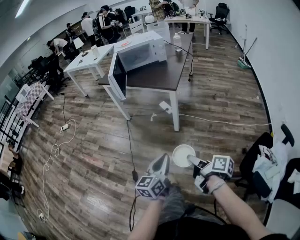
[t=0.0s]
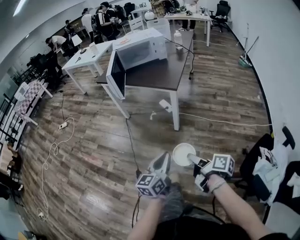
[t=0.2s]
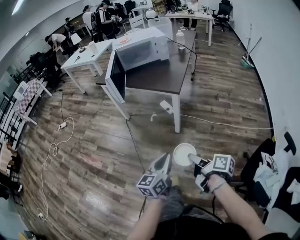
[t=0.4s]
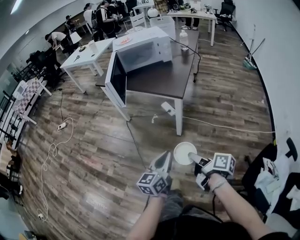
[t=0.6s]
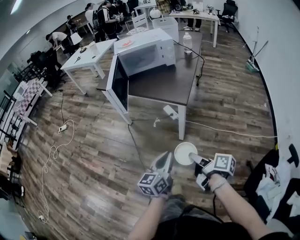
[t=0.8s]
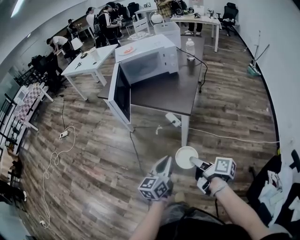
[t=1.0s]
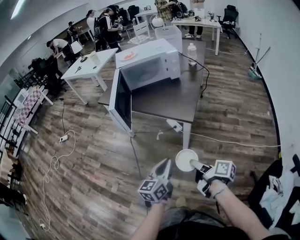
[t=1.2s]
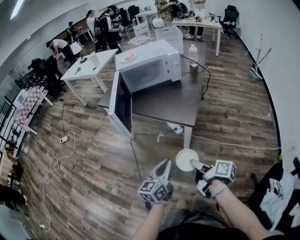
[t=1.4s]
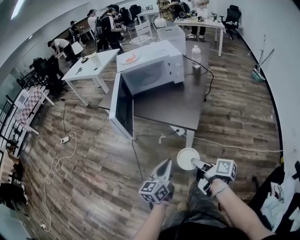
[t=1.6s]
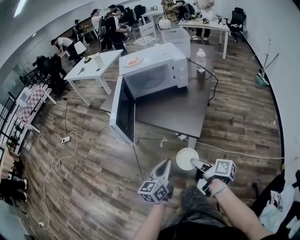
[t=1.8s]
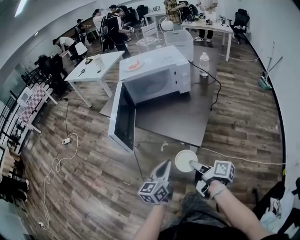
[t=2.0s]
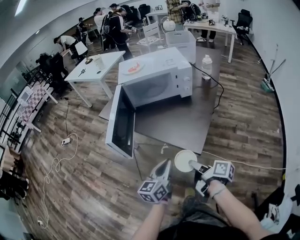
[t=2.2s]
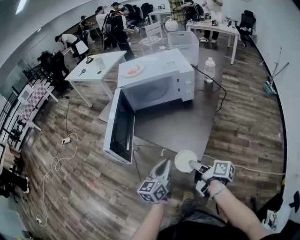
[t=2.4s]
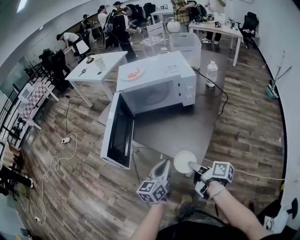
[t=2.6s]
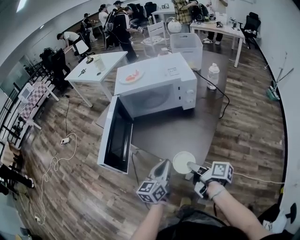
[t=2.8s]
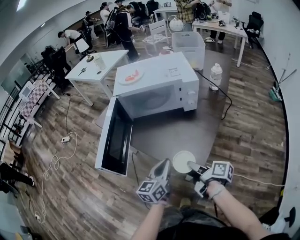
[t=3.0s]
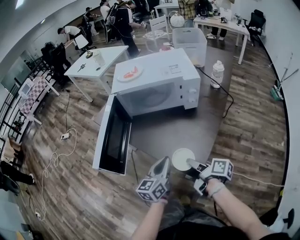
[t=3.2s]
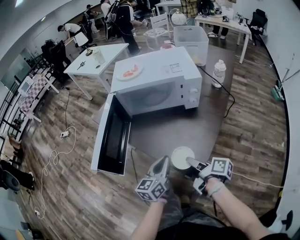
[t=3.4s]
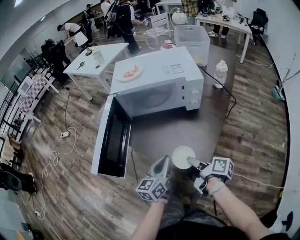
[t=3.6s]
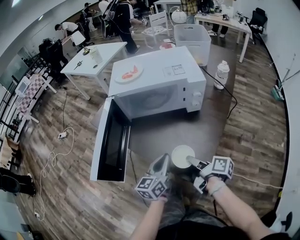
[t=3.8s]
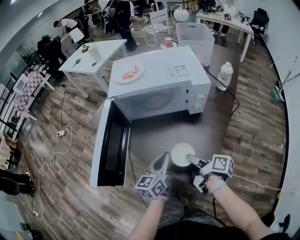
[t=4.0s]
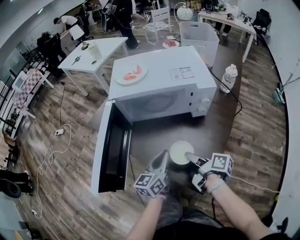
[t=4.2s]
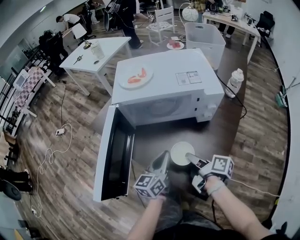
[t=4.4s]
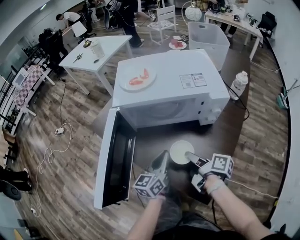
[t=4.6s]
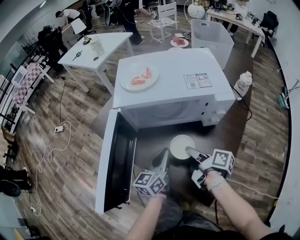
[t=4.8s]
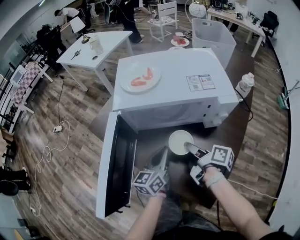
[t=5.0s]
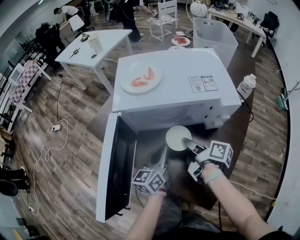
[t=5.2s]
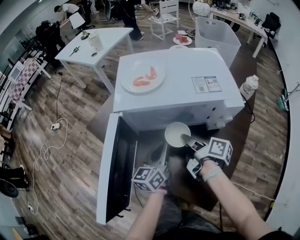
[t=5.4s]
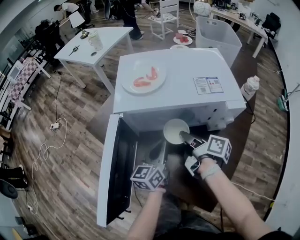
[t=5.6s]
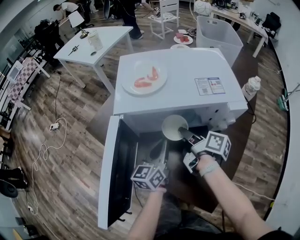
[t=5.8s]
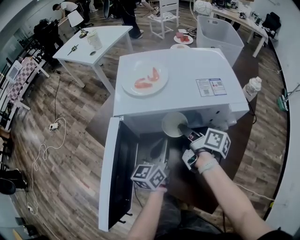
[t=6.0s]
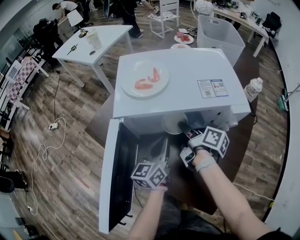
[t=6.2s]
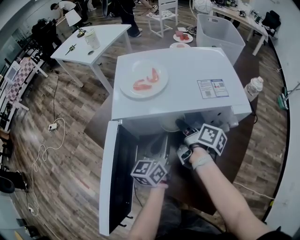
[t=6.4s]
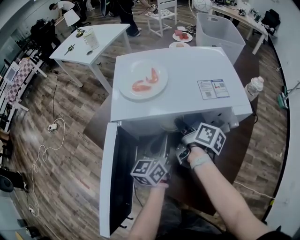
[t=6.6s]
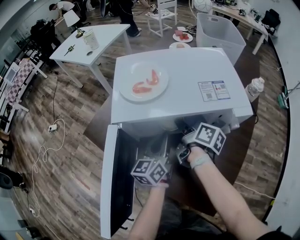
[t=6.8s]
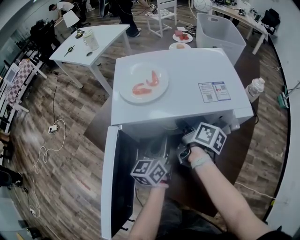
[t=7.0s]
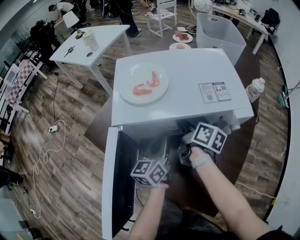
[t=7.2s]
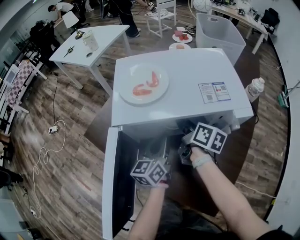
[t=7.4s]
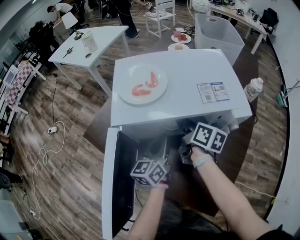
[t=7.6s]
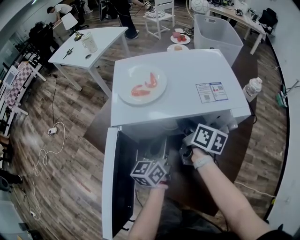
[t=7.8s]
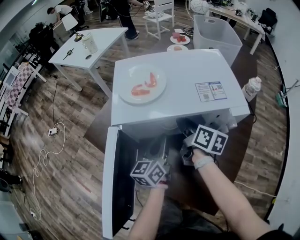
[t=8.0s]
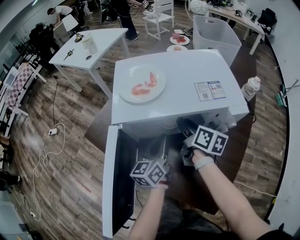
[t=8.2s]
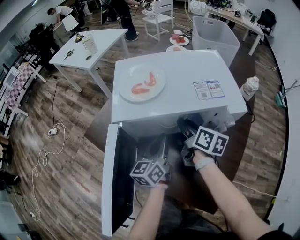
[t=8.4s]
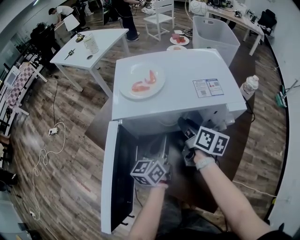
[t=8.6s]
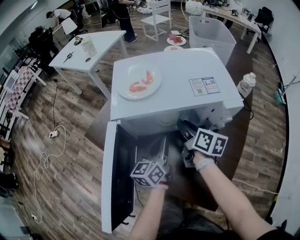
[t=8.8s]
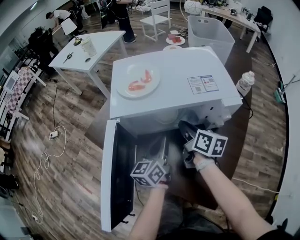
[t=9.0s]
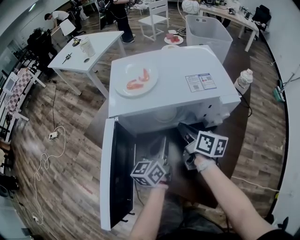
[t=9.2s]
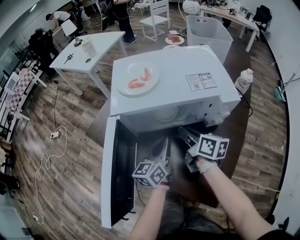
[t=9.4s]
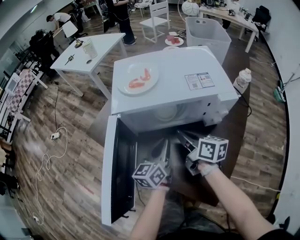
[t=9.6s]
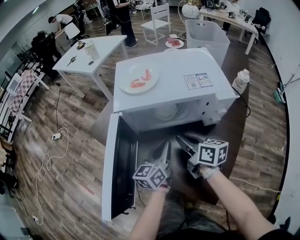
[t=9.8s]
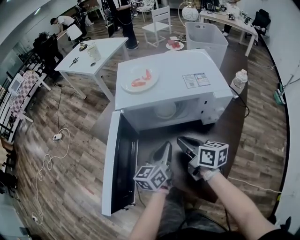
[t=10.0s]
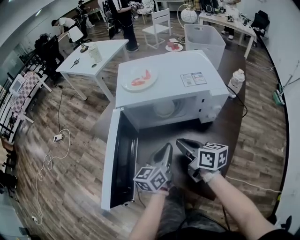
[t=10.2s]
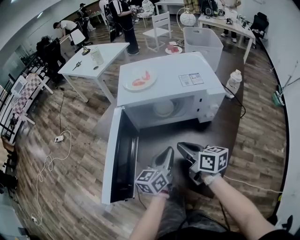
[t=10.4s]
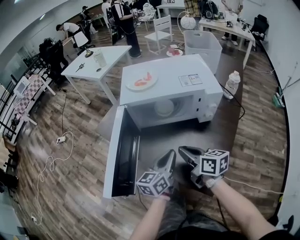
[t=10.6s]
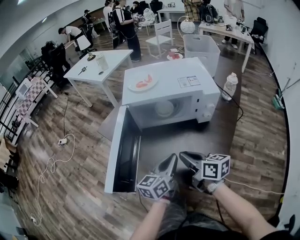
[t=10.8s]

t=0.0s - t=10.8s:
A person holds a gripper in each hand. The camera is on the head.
t=0.0s - t=1.6s: The two grippers go approximately 35 cm forward.
t=1.6s - t=3.0s: Both grippers move forward, some 25 cm.
t=3.0s - t=4.6s: The grippers both shift forward by approximately 20 cm.
t=4.6s - t=6.2s: The left gripper goes roughly 10 cm forward; the right gripper moves forward, about 20 cm.
t=6.2s - t=7.8s: The right gripper swivels roughly 20 degrees.
t=7.8s - t=9.2s: The right gripper moves backward, roughly 5 cm, and closes its fingers.
t=9.2s - t=10.8s: Both grippers travel together backward, approximately 20 cm. The right gripper turns by about 20 degrees.

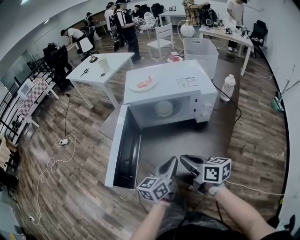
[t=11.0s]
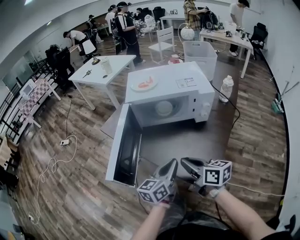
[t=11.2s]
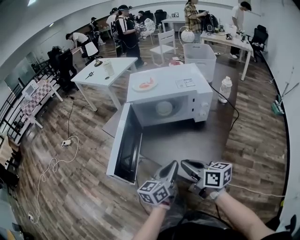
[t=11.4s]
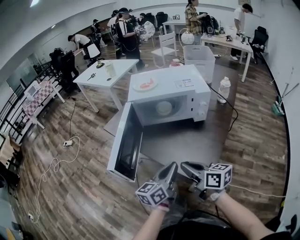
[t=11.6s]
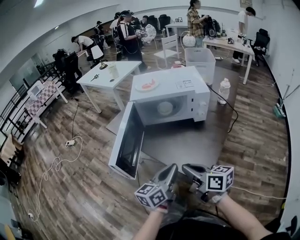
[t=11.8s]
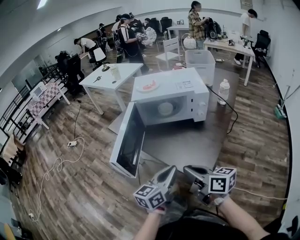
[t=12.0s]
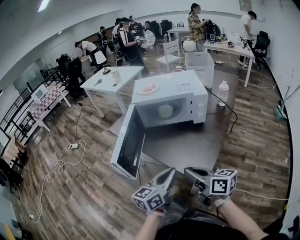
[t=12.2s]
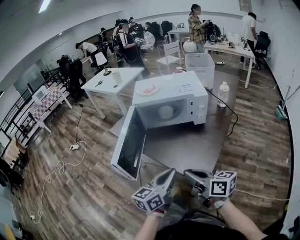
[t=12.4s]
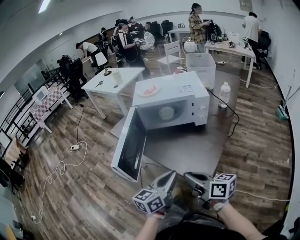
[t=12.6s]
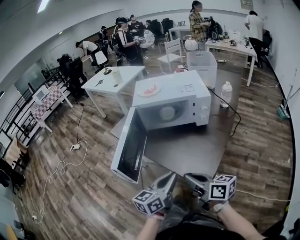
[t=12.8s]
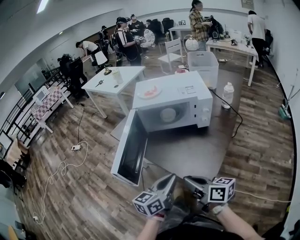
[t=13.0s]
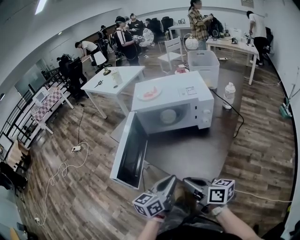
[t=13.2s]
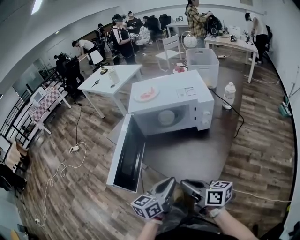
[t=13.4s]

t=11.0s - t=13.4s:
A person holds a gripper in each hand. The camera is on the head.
t=11.0s - t=12.2s: The grippers both shift backward by some 15 cm.
t=12.2s - t=13.4s: The left gripper goes approximately 5 cm forward; the right gripper shifts by some 5 cm.

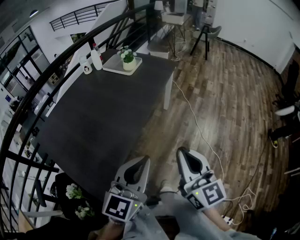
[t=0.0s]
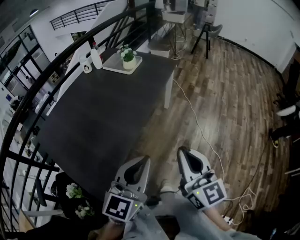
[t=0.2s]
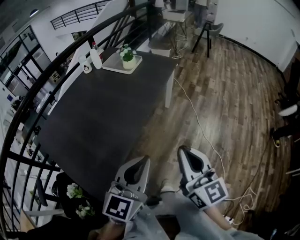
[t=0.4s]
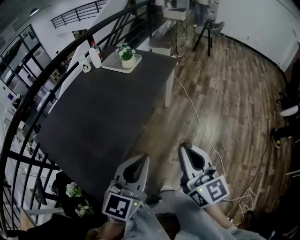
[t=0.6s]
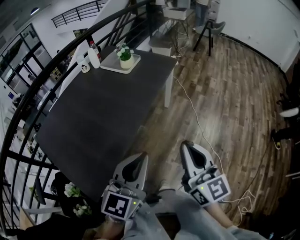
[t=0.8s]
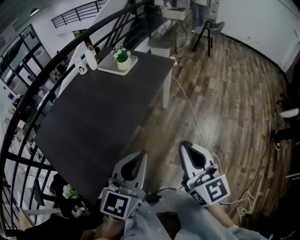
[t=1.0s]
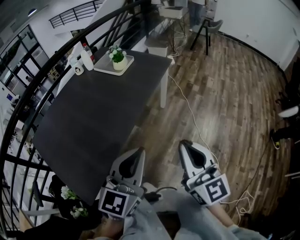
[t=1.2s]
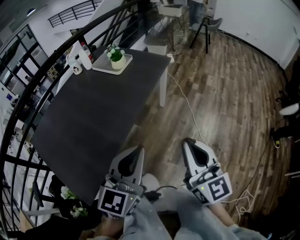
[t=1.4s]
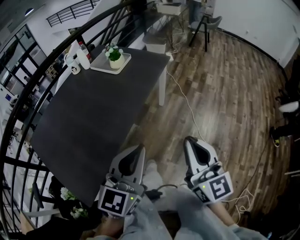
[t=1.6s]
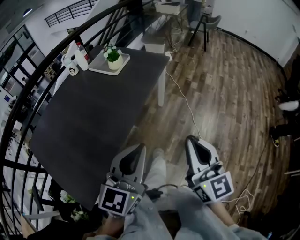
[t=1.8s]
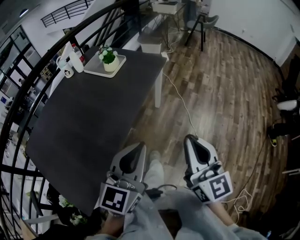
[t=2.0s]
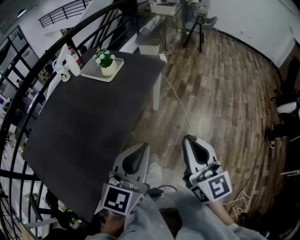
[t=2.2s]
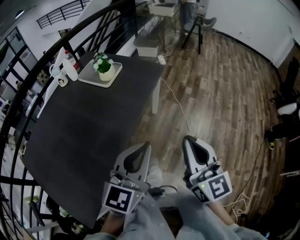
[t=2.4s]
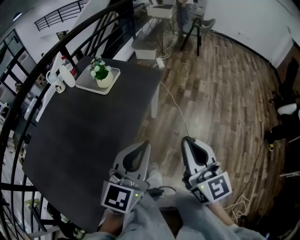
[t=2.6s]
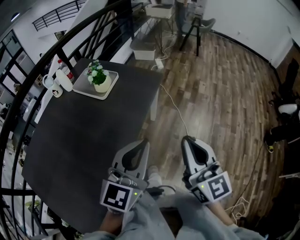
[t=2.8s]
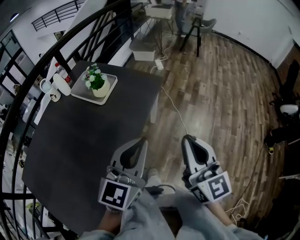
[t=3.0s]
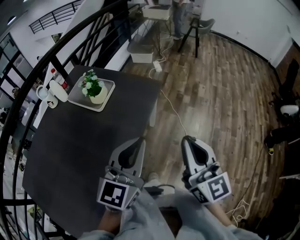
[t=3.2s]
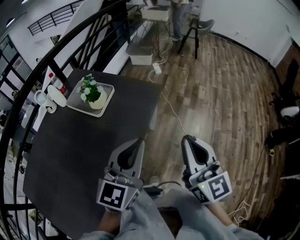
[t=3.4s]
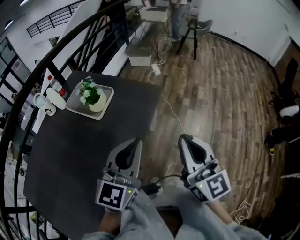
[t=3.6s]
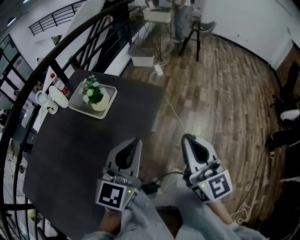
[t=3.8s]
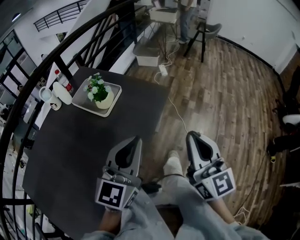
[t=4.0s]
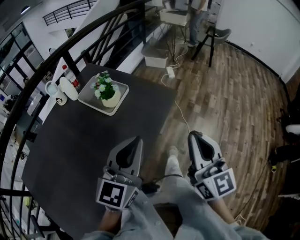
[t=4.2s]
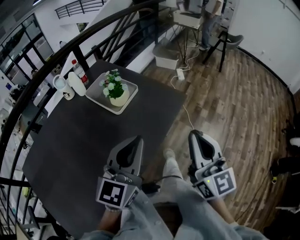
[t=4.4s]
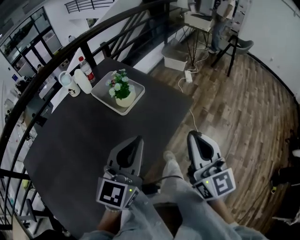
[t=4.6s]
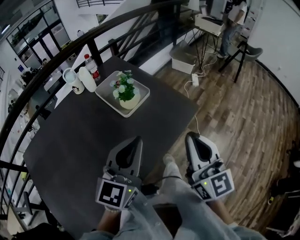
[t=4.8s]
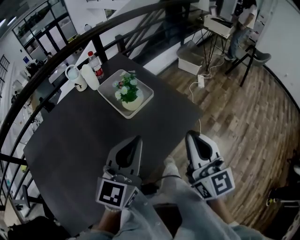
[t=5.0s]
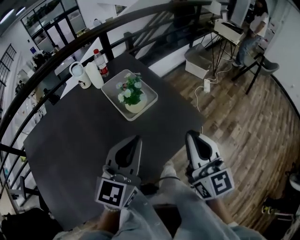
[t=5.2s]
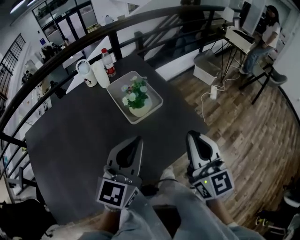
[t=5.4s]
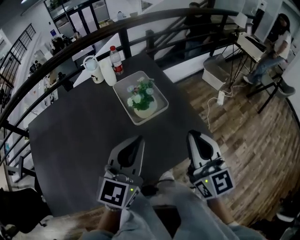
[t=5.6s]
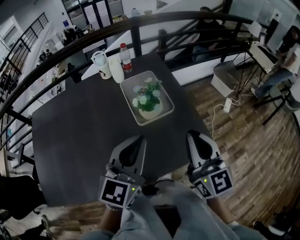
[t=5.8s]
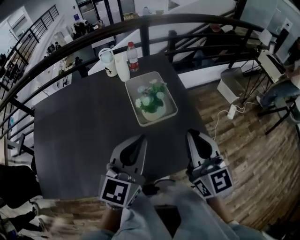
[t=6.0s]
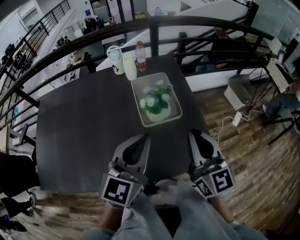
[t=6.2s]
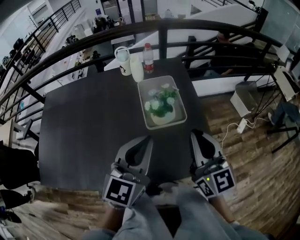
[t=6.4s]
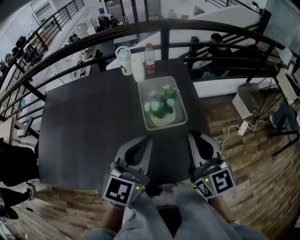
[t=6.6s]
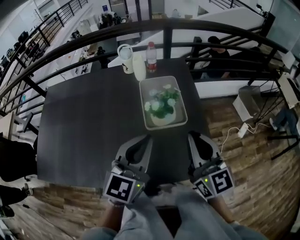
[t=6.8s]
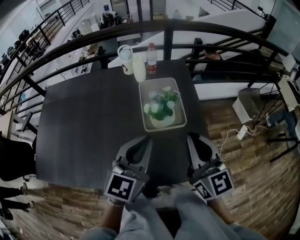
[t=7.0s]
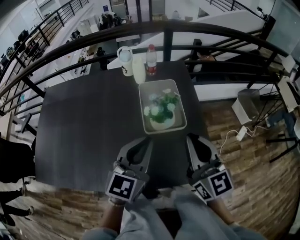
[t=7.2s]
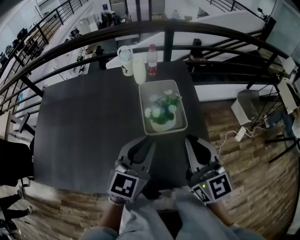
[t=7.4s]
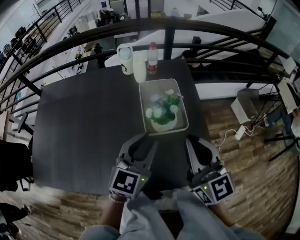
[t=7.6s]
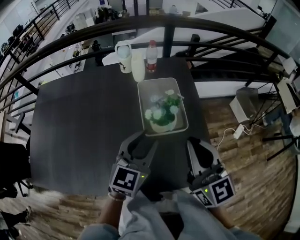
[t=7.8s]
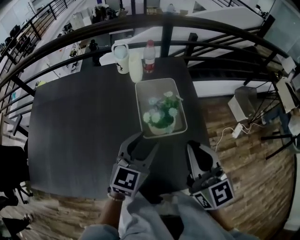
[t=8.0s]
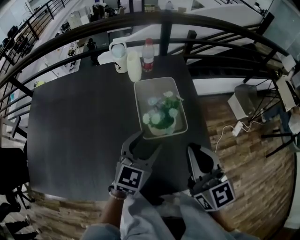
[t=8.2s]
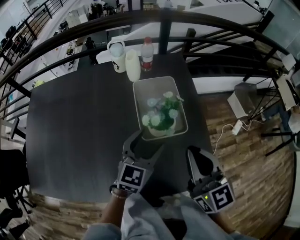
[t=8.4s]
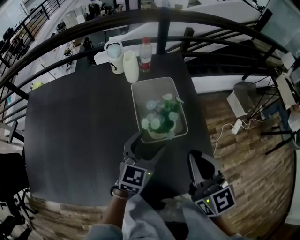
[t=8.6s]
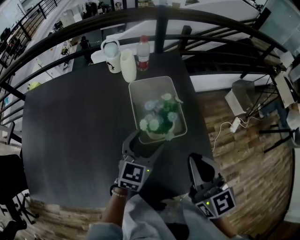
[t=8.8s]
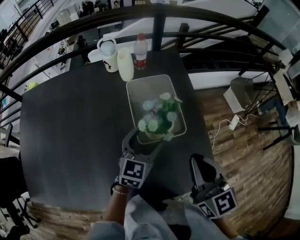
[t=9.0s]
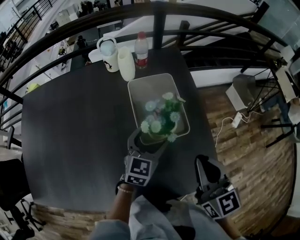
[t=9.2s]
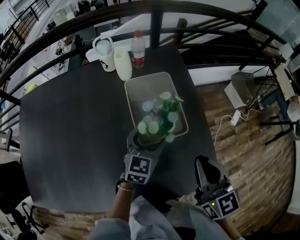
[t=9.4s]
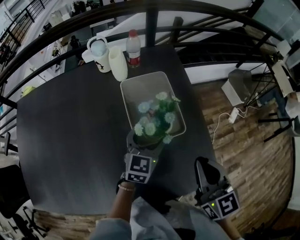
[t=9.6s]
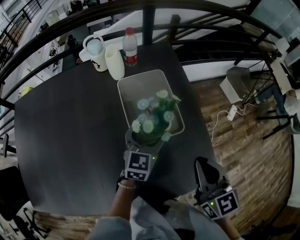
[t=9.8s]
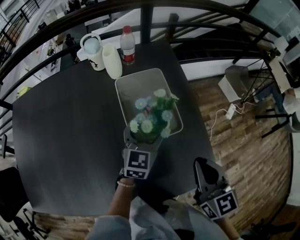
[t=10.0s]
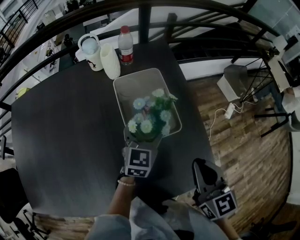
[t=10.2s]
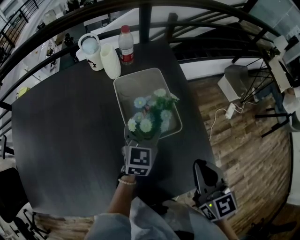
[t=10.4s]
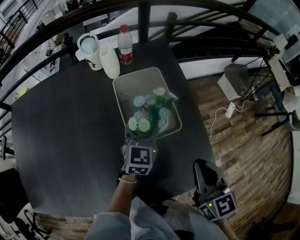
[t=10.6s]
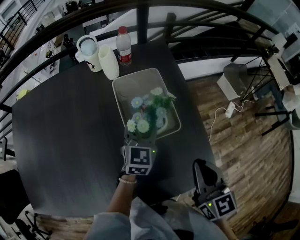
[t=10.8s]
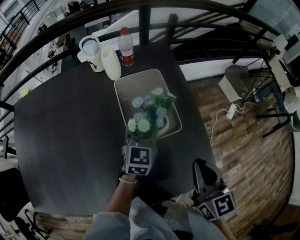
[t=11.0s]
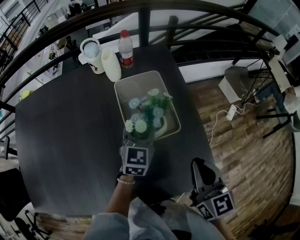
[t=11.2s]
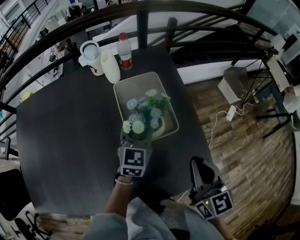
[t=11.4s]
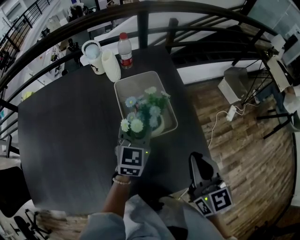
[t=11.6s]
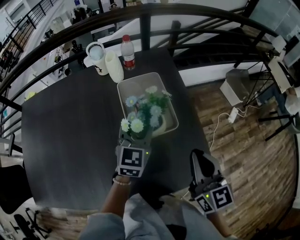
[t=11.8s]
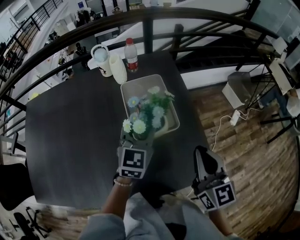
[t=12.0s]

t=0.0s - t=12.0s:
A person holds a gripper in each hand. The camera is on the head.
t=0.0s - t=1.6s: The left gripper moves forward and to the right, about 15 cm. The right gripper is displaced to the right and forward by approximately 15 cm.
t=1.6s - t=3.0s: The two grippers go some 25 cm forward.
t=3.0s - t=4.4s: The left gripper heads forward and to the left, covering roughly 15 cm; the right gripper shifts approximately 15 cm forward.
t=4.4s - t=6.0s: The right gripper moves approximately 25 cm, and swivels approximately 40 degrees, while the left gripper changes place by approximately 15 cm, and swivels approximately 40 degrees.
t=6.0s - t=7.6s: The left gripper is displaced downward and forward by approximately 10 cm. The right gripper goes some 5 cm forward.
t=7.6s - t=9.0s: The right gripper heads downward, covering approximately 5 cm; the left gripper goes about 15 cm downward and forward, and opens its fingers.
t=9.0s - t=10.4s: The right gripper moves approximately 5 cm. Meanwhile the left gripper shifts approximately 5 cm forward.
t=10.4s - t=12.0s: The left gripper is displaced upward by approximately 10 cm, and closes its fingers.
